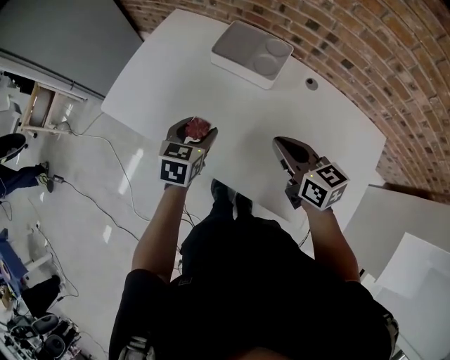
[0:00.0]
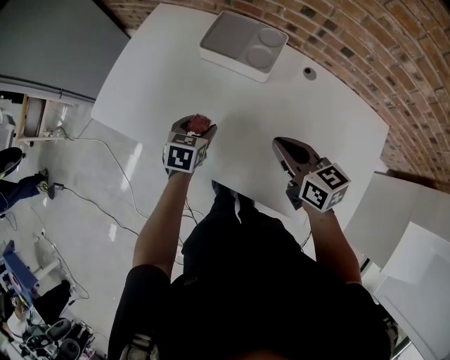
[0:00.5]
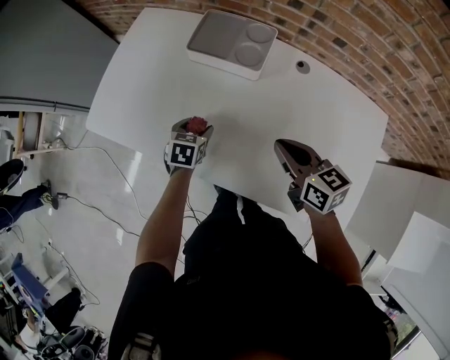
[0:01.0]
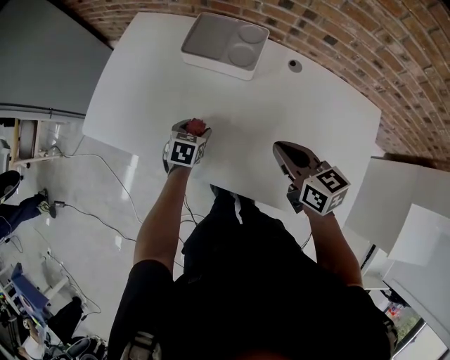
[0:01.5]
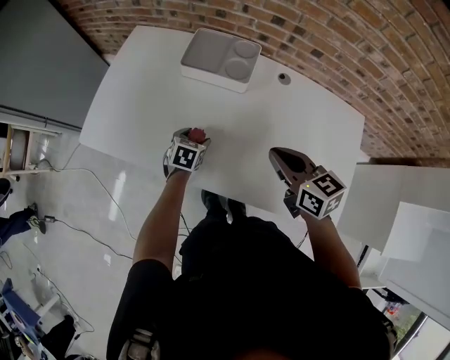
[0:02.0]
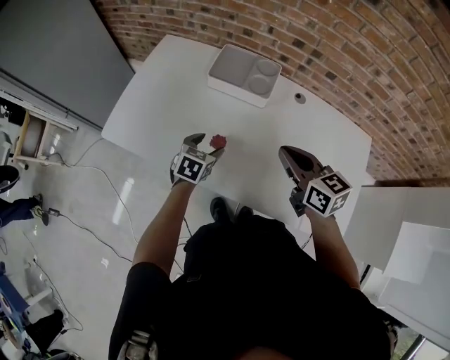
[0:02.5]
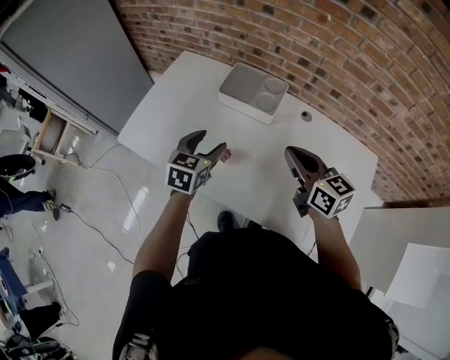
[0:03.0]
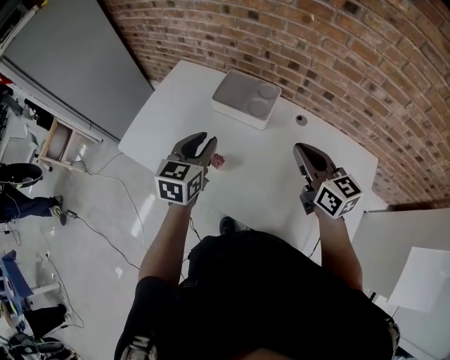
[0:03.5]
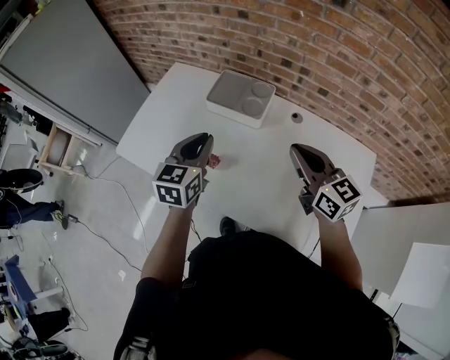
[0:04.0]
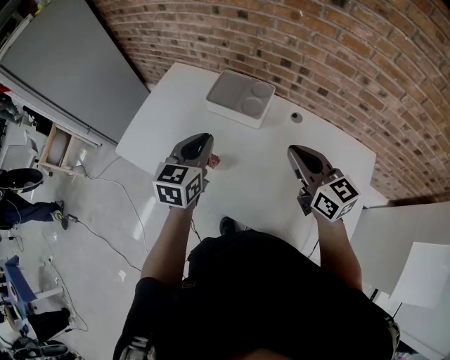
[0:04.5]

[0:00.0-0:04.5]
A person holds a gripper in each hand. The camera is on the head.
0:00.0 to 0:02.0: The left gripper travels downward by some 15 cm.
0:02.0 to 0:04.5: The left gripper heads upward, covering approximately 30 cm, tilts its fingers roughly 30 degrees upward, and closes. Meanwhile the right gripper travels upward and to the right by about 10 cm, and rotates some 20 degrees.

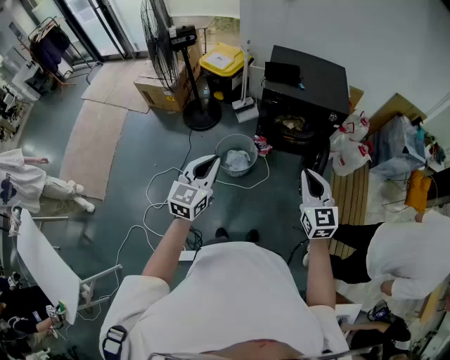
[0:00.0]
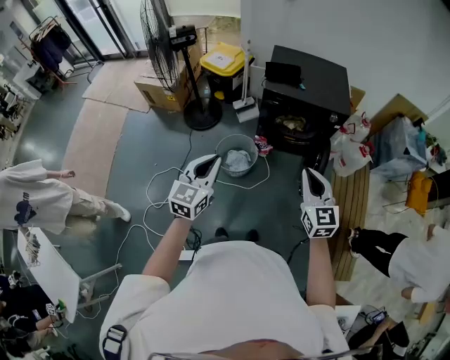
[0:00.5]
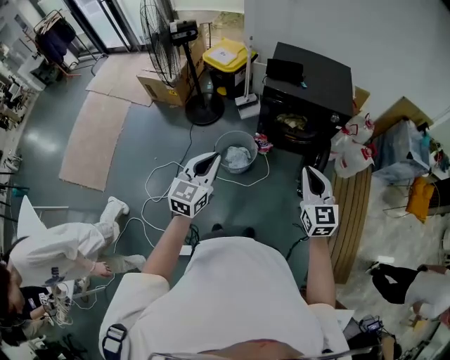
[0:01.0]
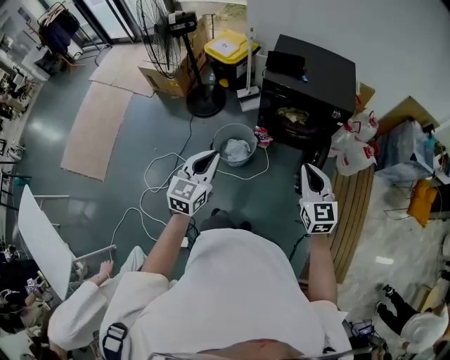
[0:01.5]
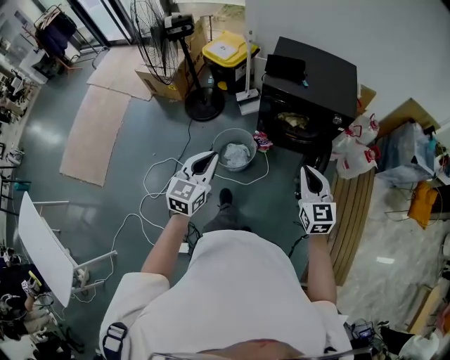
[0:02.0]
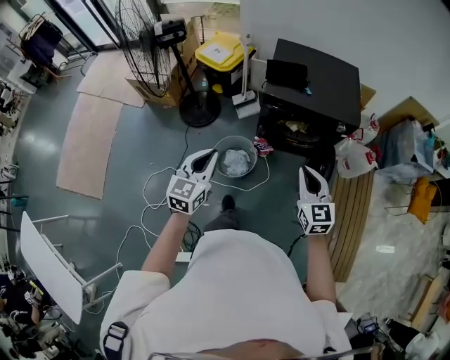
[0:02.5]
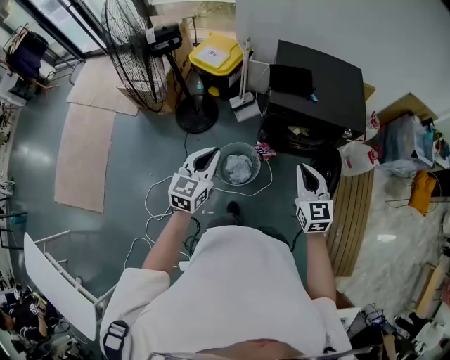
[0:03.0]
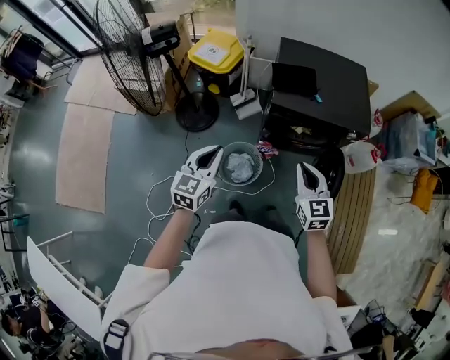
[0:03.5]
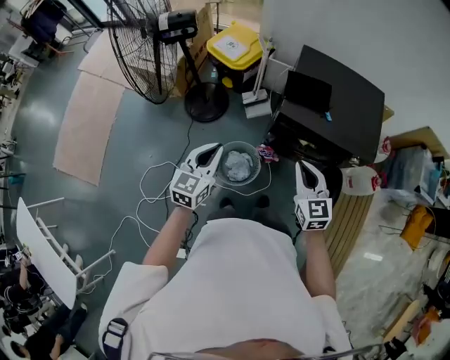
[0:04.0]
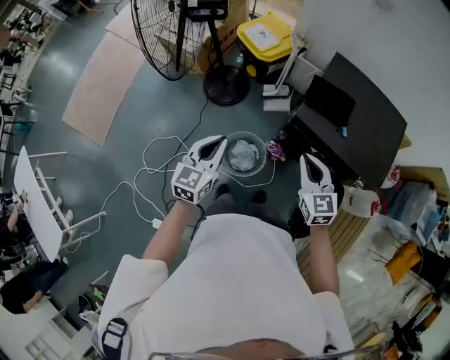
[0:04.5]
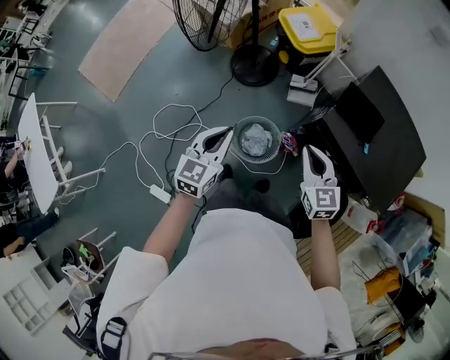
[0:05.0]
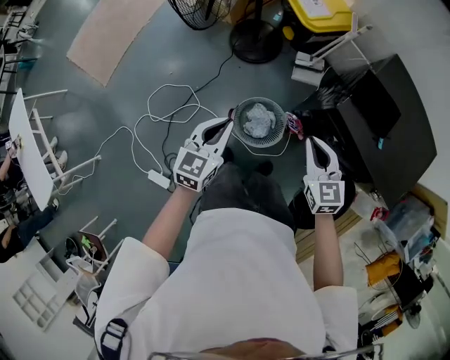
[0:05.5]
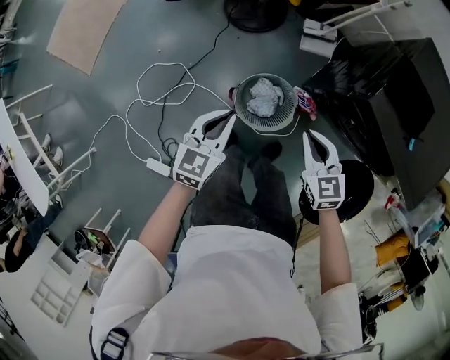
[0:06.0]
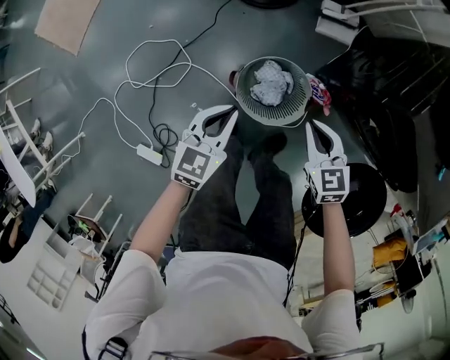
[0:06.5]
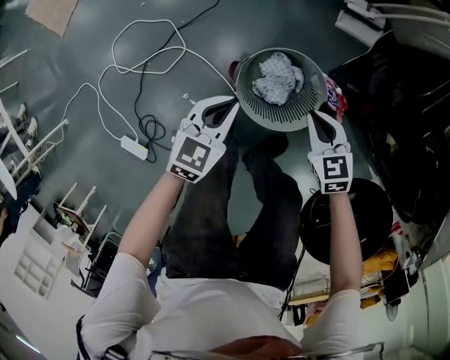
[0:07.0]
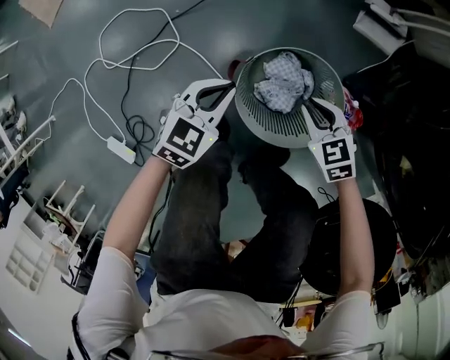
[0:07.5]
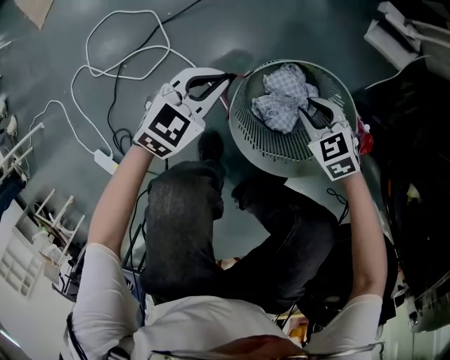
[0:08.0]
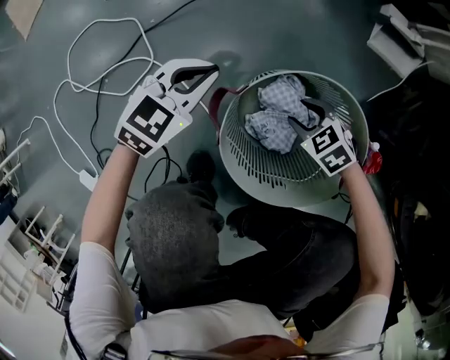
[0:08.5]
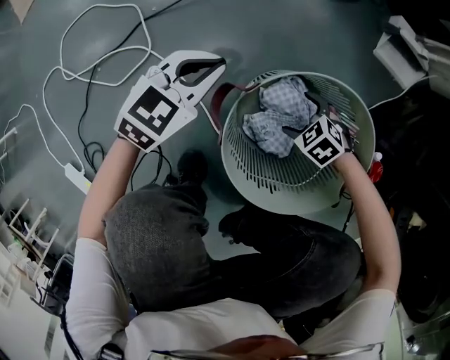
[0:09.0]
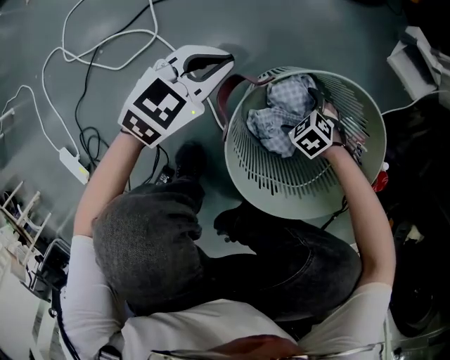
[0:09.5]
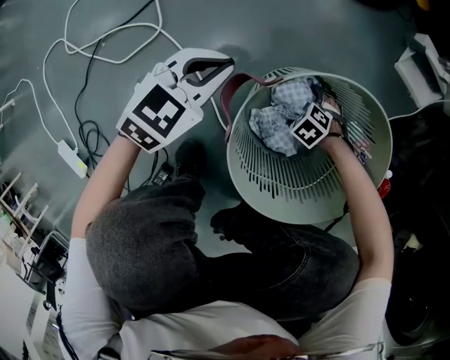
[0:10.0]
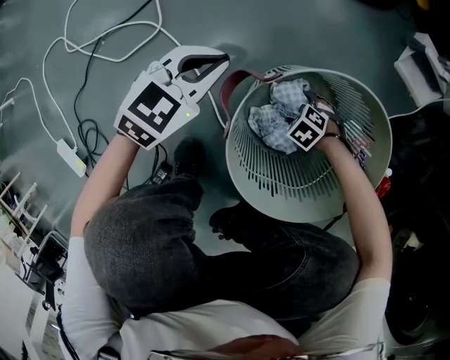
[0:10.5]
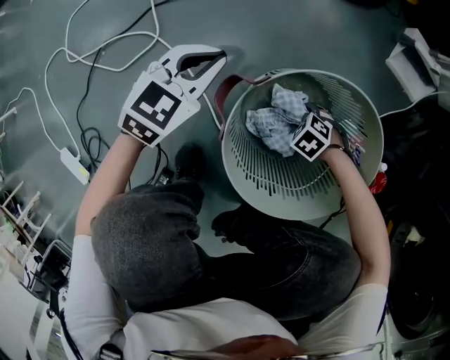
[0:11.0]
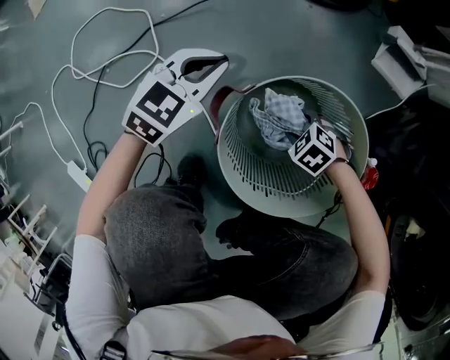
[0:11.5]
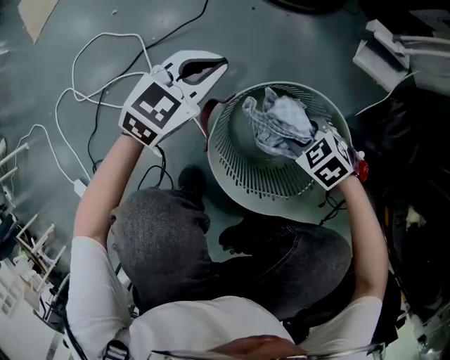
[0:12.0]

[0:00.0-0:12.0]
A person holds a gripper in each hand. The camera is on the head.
0:00.0 to 0:02.0: The left gripper heads forward and to the right, covering some 10 cm, while the right gripper is displaced forward, to the right and downward by some 10 cm.
0:02.0 to 0:04.0: The right gripper travels forward and to the left by roughly 30 cm, while the left gripper shifts some 25 cm forward.
0:04.0 to 0:06.0: Both grippers travel together downward and to the left, approximately 25 cm. The right gripper rotates approximately 30 degrees, while the left gripper swivels roughly 20 degrees.
0:06.0 to 0:08.0: Both grippers travel together downward, some 50 cm. The right gripper swivels some 40 degrees.
0:08.0 to 0:10.0: The right gripper travels downward by roughly 30 cm, changes its angle by some 40 degrees, and opens its fingers, while the left gripper moves downward, about 10 cm.
0:10.0 to 0:12.0: The right gripper moves upward, about 25 cm, turns by some 30 degrees, and closes, while the left gripper goes approximately 10 cm upward.

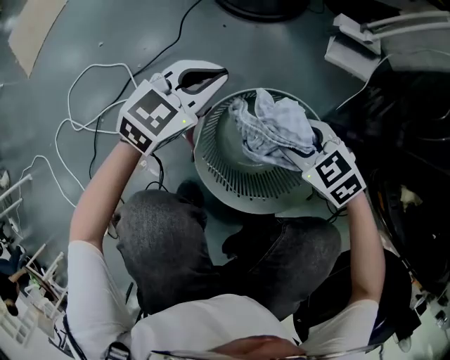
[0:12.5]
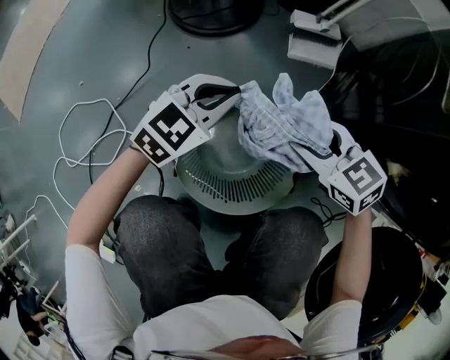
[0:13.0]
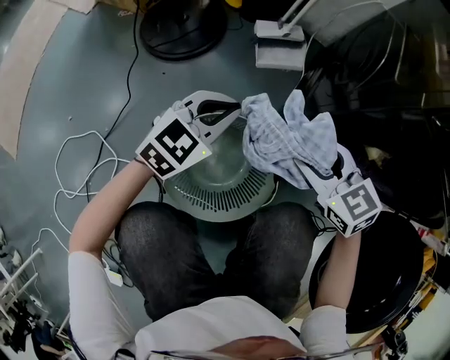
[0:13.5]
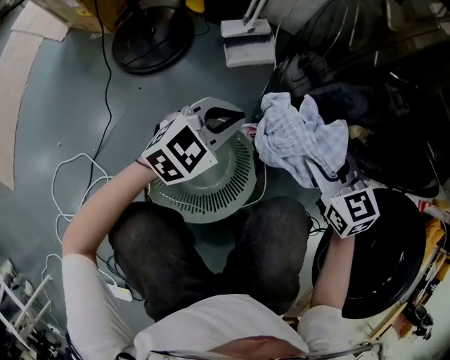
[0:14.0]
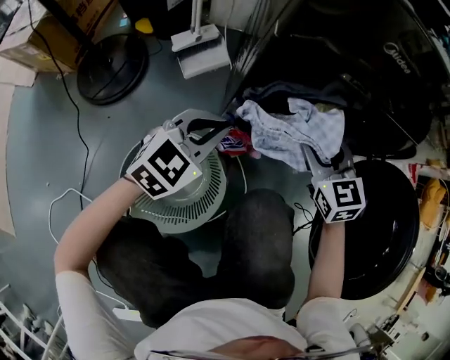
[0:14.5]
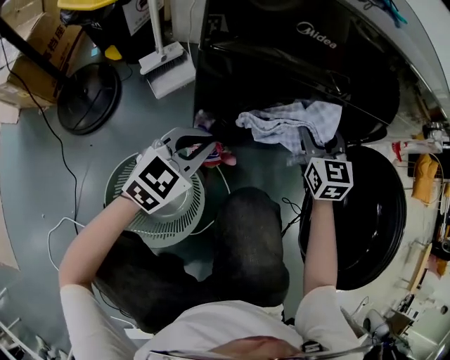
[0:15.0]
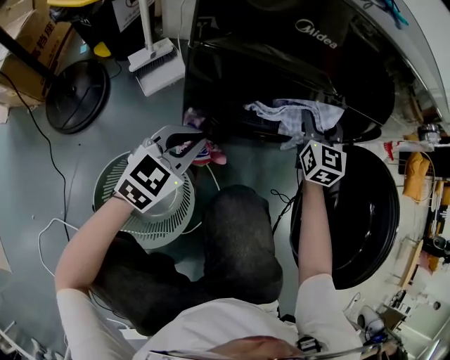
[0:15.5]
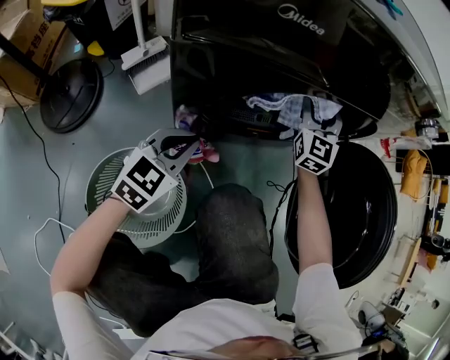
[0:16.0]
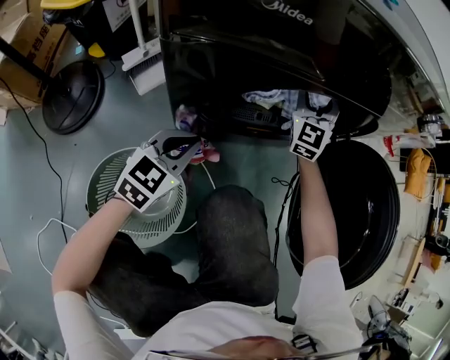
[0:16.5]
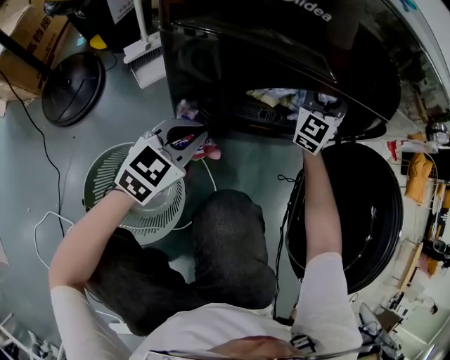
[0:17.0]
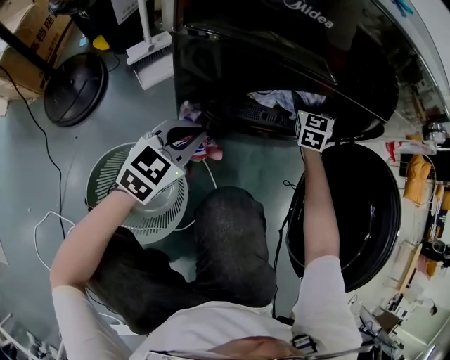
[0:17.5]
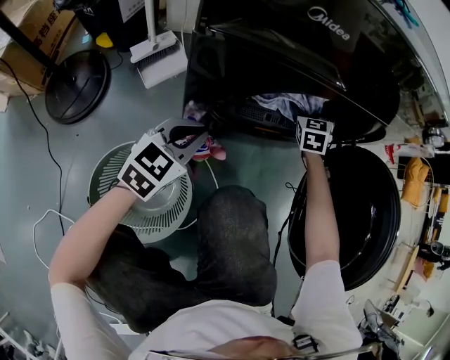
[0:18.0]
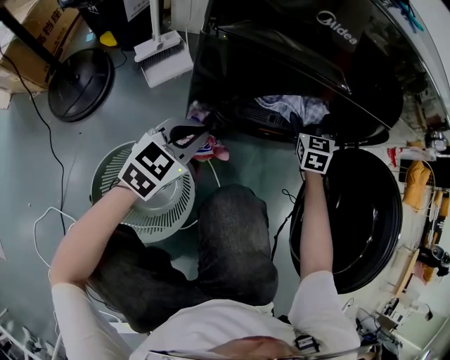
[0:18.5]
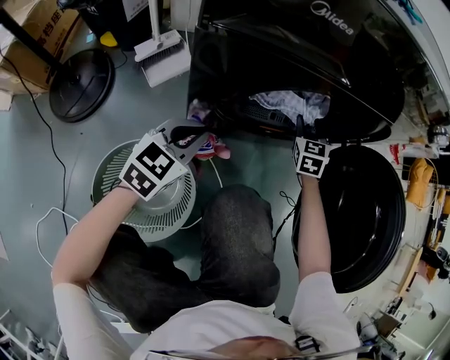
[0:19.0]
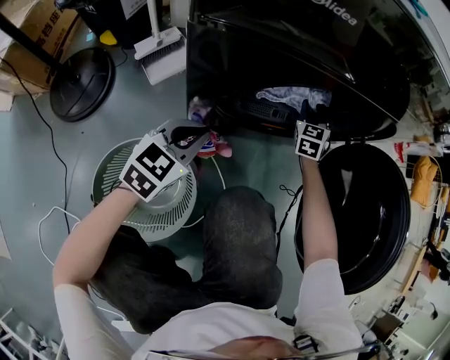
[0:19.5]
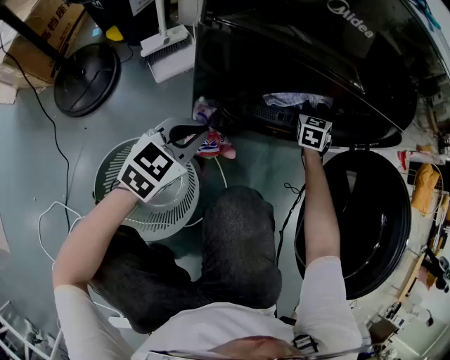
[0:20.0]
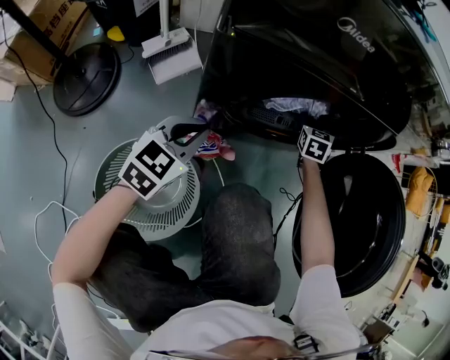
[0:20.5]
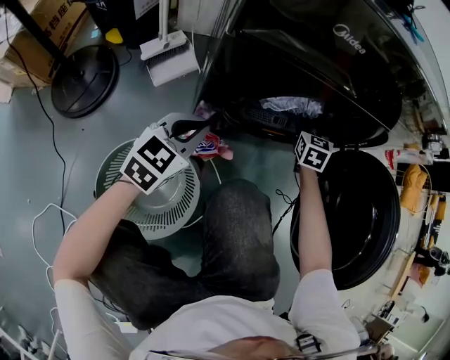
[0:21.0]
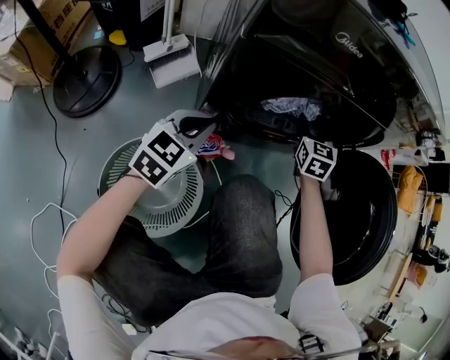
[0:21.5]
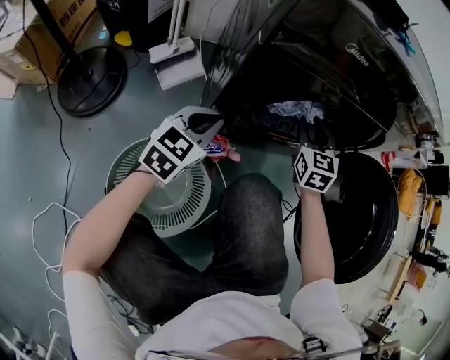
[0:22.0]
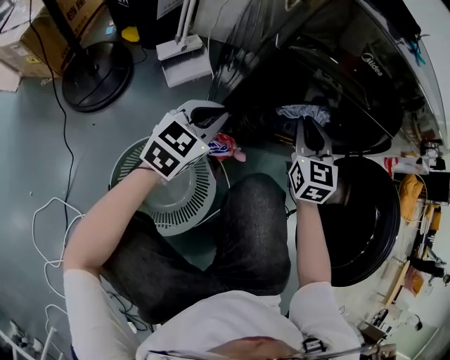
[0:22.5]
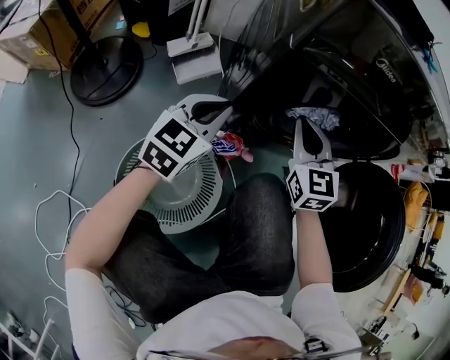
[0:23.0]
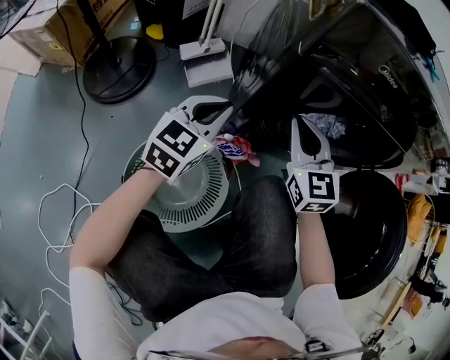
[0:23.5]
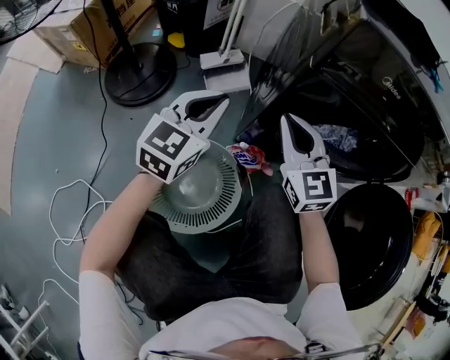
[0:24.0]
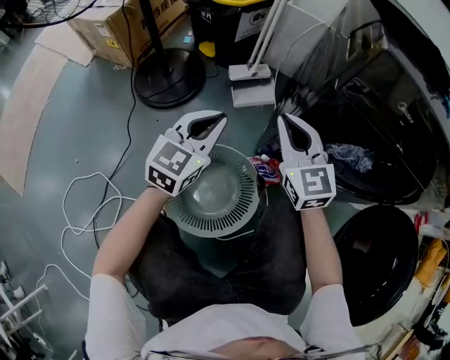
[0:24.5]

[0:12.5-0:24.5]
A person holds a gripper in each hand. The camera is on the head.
0:12.5 to 0:14.5: The left gripper shifts by some 35 cm, and swivels some 40 degrees. The right gripper changes place by roughly 40 cm, and turns by approximately 70 degrees.
0:14.5 to 0:16.5: The left gripper moves to the right, roughly 5 cm. Meanwhile the right gripper is displaced forward and to the right by about 20 cm, and tips its fingers upward by approximately 30 degrees.
0:16.5 to 0:18.5: The right gripper travels downward by roughly 10 cm, angles its fingers downward, by roughly 30 degrees, and opens.
0:18.5 to 0:20.5: The right gripper goes some 5 cm downward.
0:20.5 to 0:22.5: The right gripper is displaced backward, upward and to the left by roughly 30 cm, turns by roughly 30 degrees, and closes up. The left gripper moves about 5 cm.
0:22.5 to 0:24.5: The right gripper moves roughly 25 cm, and swivels about 40 degrees. Meanwhile the left gripper moves roughly 15 cm, and turns by about 30 degrees.
